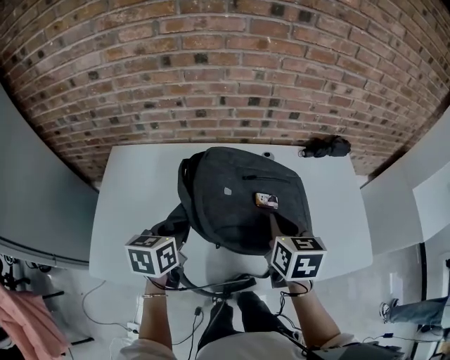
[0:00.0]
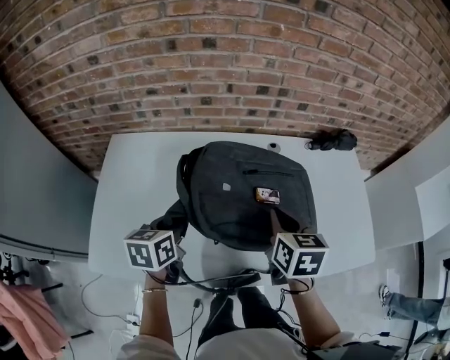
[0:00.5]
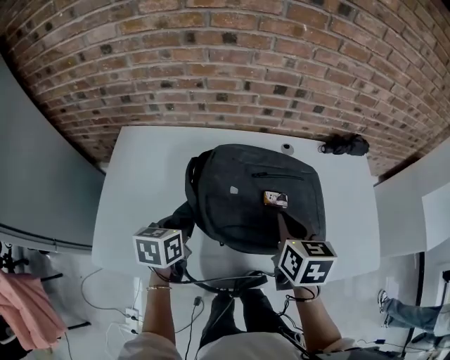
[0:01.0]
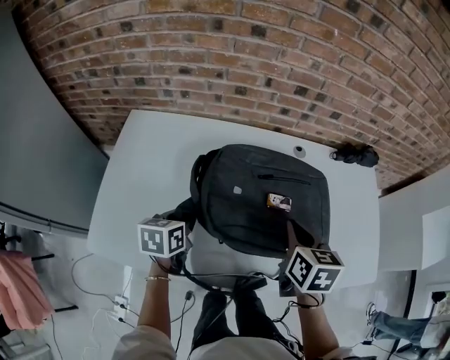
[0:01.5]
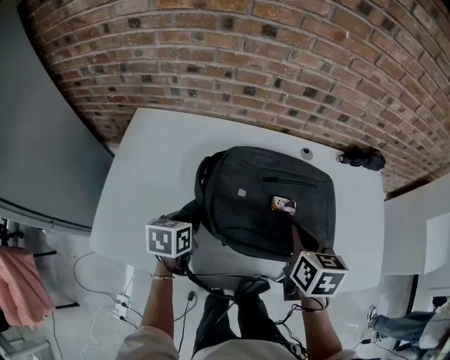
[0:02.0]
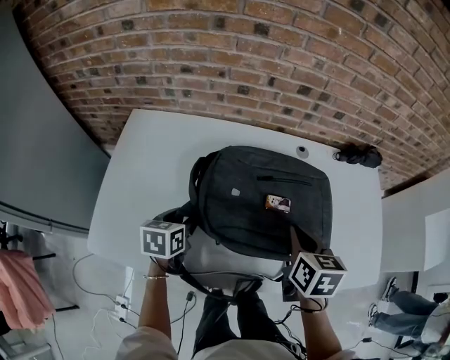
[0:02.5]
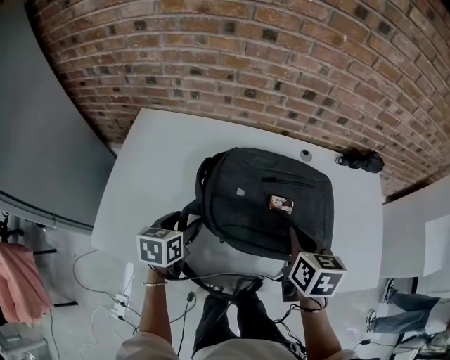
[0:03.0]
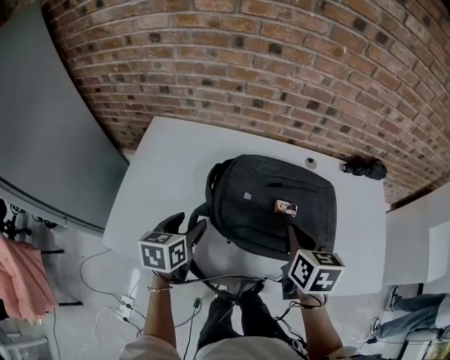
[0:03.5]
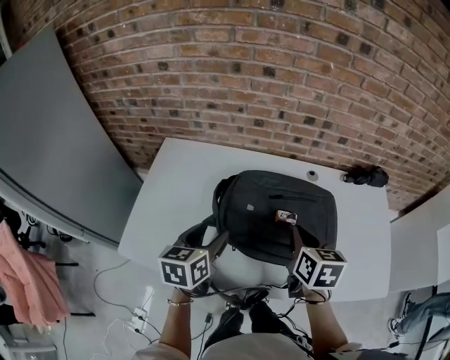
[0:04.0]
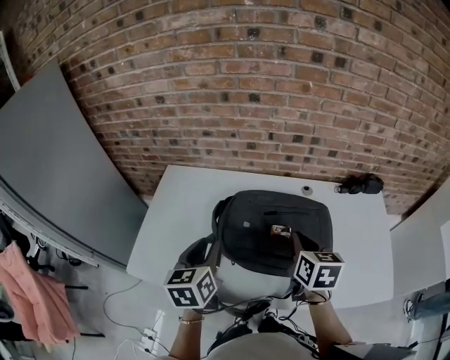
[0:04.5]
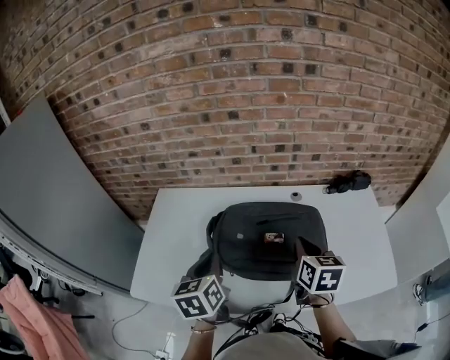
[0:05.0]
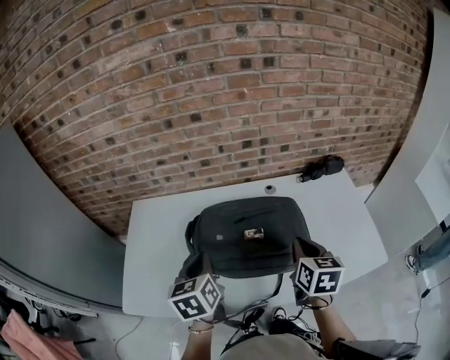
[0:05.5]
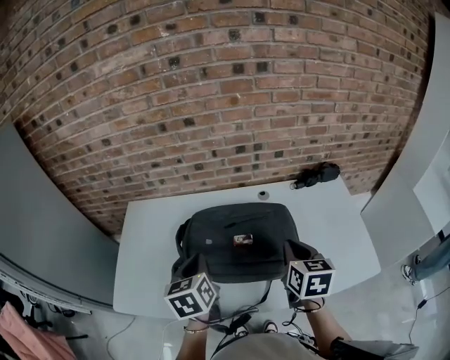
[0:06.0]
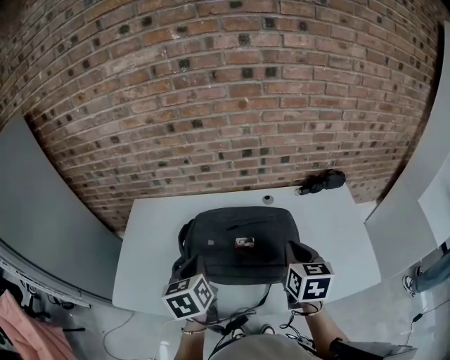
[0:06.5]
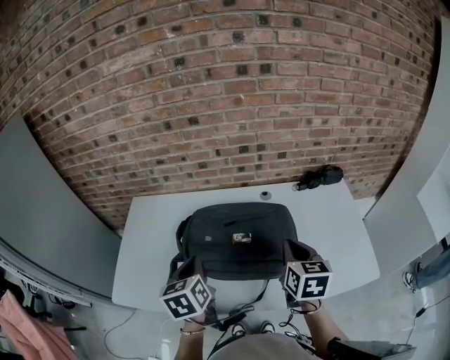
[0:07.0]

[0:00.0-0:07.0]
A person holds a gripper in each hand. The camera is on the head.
0:00.0 to 0:02.0: The right gripper goes some 5 cm downward. Meanwhile the left gripper is displaced downward and to the left by about 15 cm.
0:02.0 to 0:03.5: The left gripper shifts some 5 cm upward, and opens up.
0:03.5 to 0:05.0: The right gripper heads upward and to the right, covering approximately 10 cm, while the left gripper goes some 15 cm upward and to the right, and closes its fingers.
0:05.0 to 0:07.0: The left gripper ends up some 5 cm from where it was, while the right gripper moves to the right, some 5 cm.

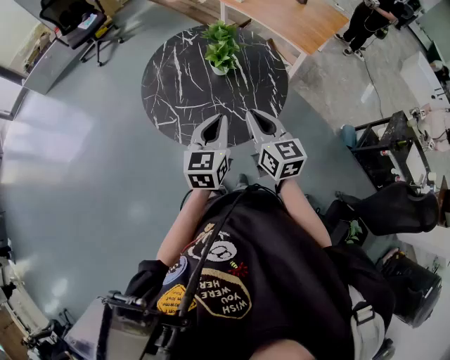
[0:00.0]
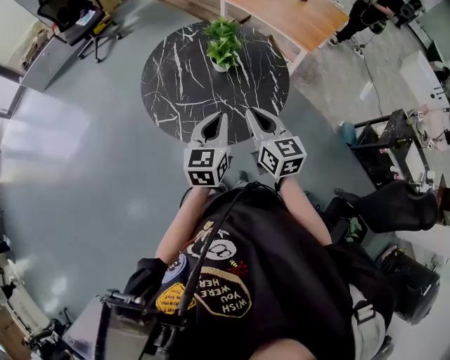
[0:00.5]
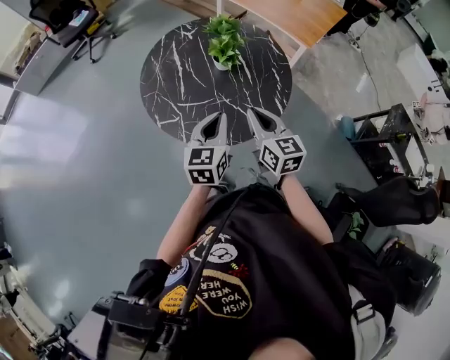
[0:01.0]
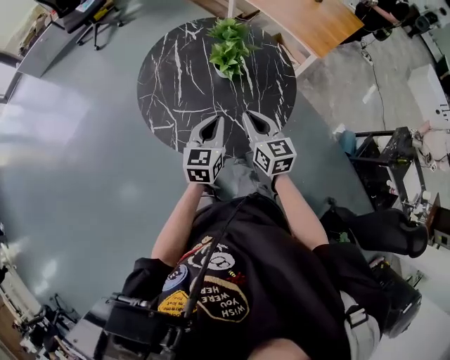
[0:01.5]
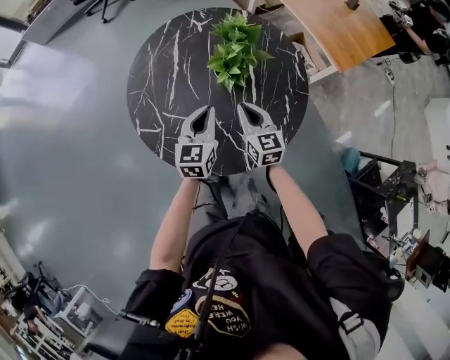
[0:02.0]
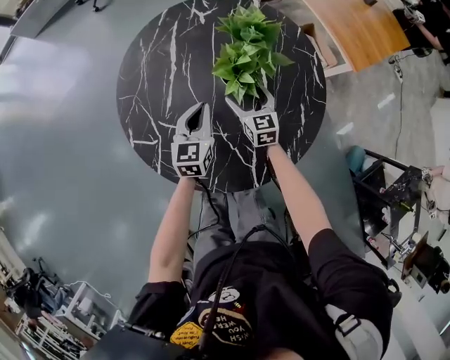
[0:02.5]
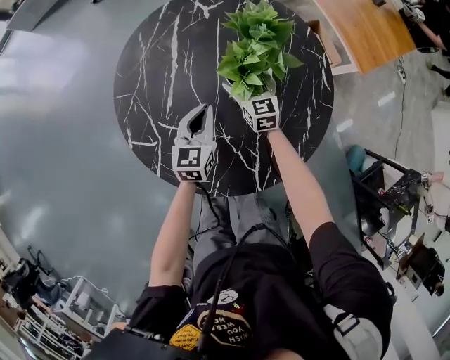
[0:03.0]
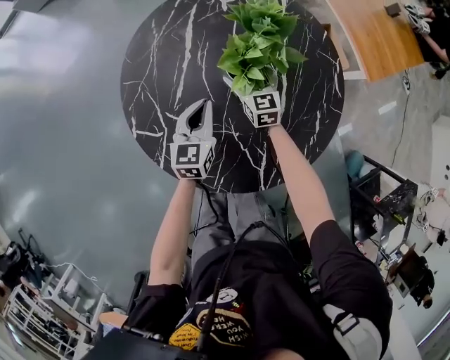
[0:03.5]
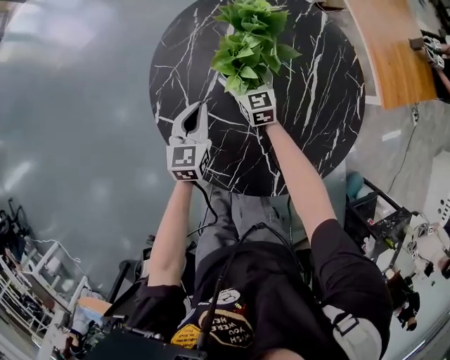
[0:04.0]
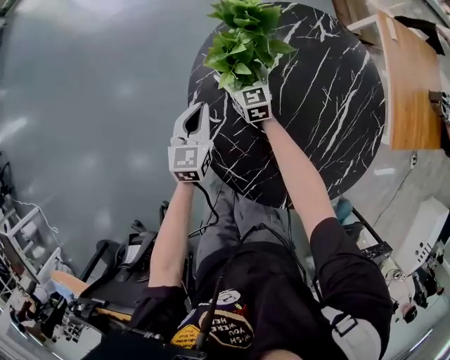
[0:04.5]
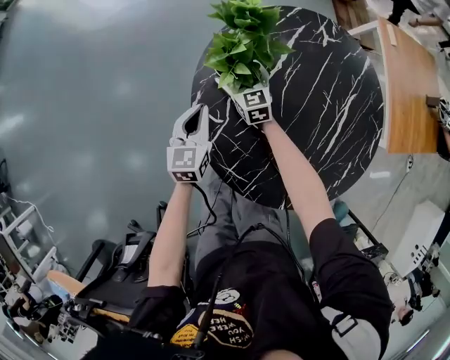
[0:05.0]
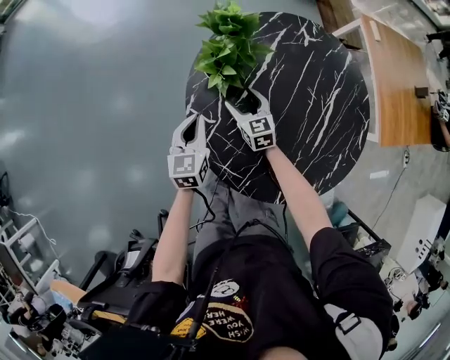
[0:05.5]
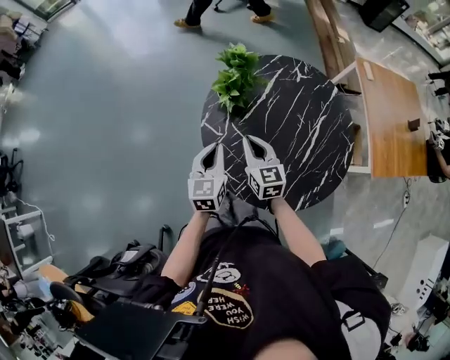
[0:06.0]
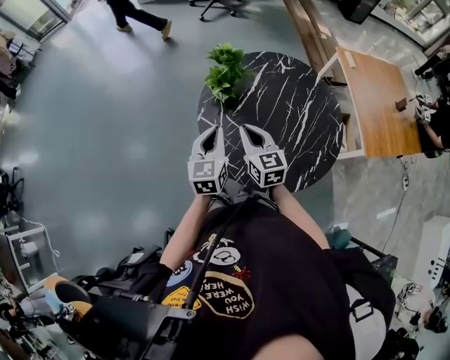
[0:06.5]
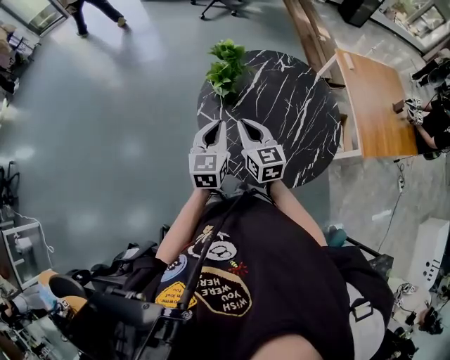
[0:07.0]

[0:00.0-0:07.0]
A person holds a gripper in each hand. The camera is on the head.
0:00.0 to 0:02.0: Both grippers move forward and downward, some 30 cm.
0:02.0 to 0:03.5: The left gripper travels downward, forward and to the left by some 15 cm; the right gripper travels forward and downward by about 25 cm, and opens up.
0:03.5 to 0:05.0: The two grippers go roughly 25 cm to the left. The left gripper turns by some 20 degrees; the right gripper rotates roughly 30 degrees.
0:05.0 to 0:07.0: Both grippers move upward and backward, roughly 35 cm. The right gripper closes.

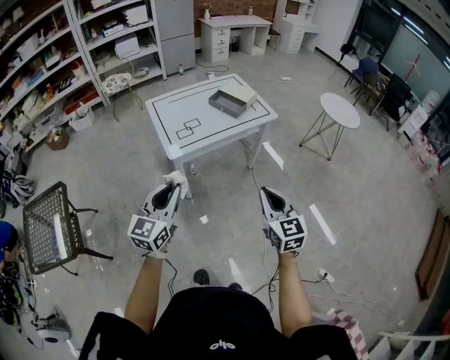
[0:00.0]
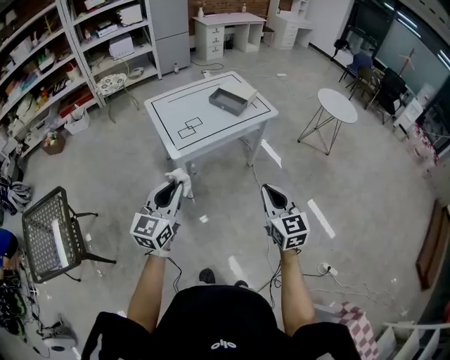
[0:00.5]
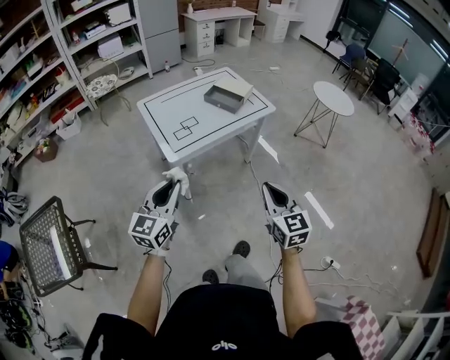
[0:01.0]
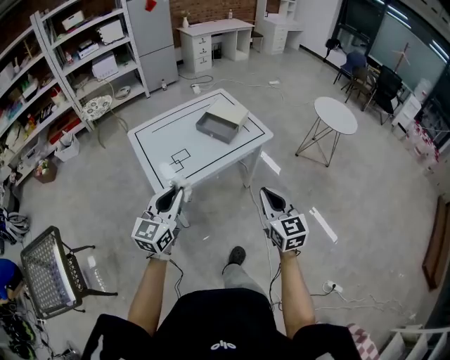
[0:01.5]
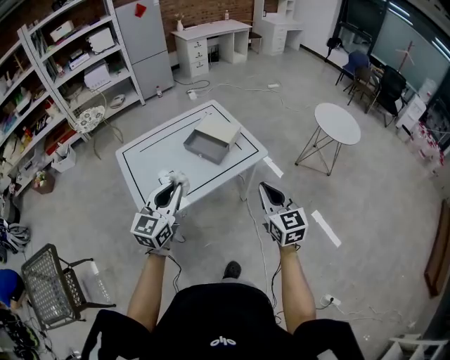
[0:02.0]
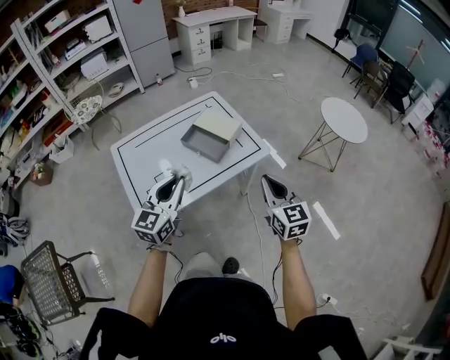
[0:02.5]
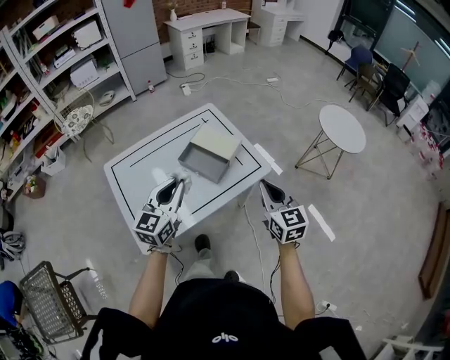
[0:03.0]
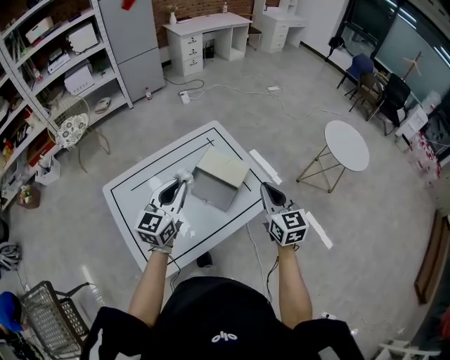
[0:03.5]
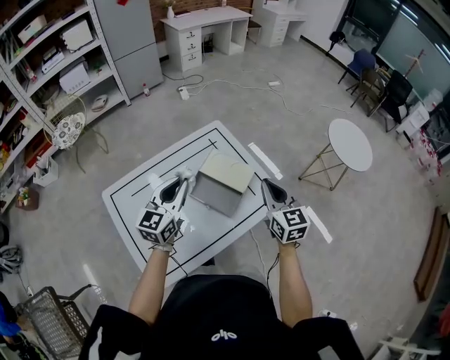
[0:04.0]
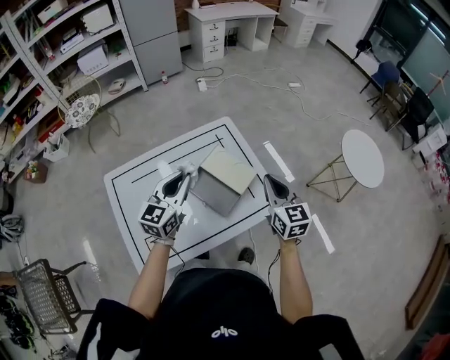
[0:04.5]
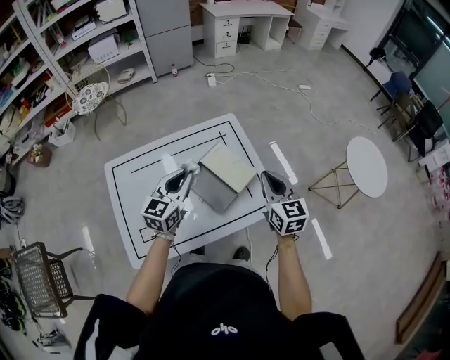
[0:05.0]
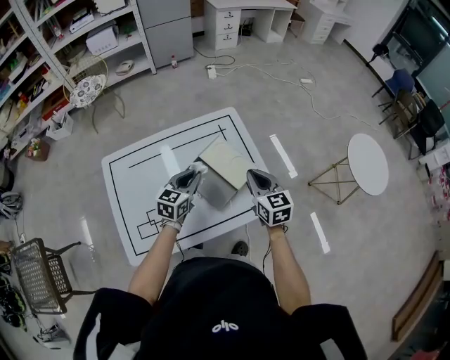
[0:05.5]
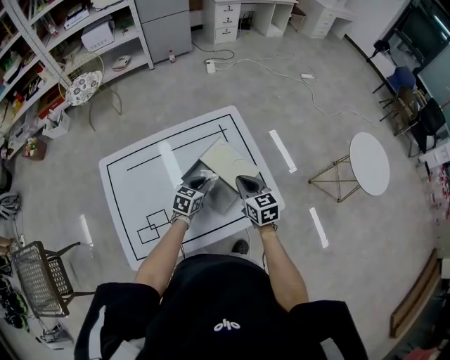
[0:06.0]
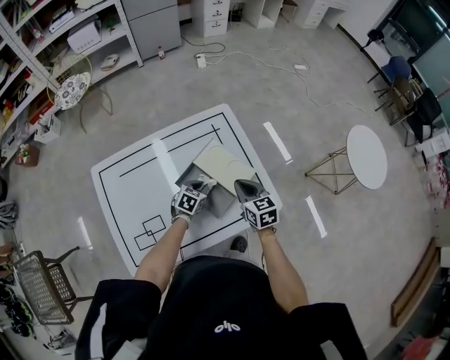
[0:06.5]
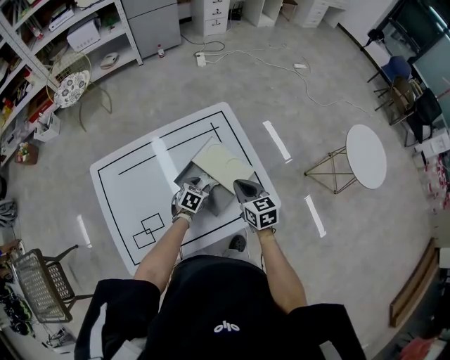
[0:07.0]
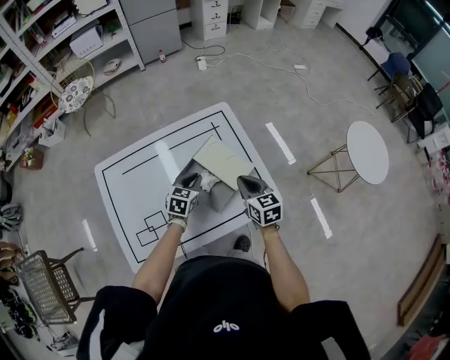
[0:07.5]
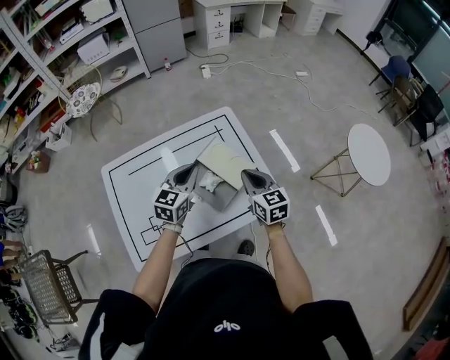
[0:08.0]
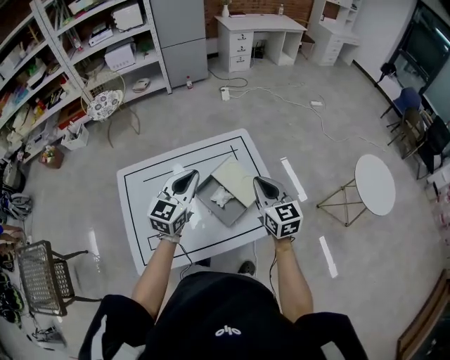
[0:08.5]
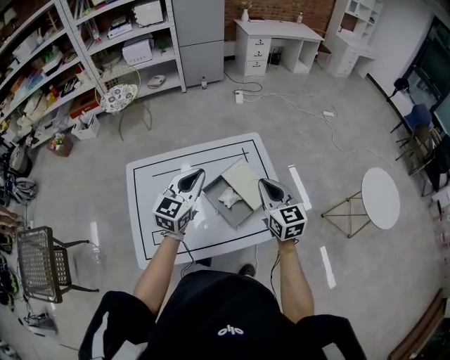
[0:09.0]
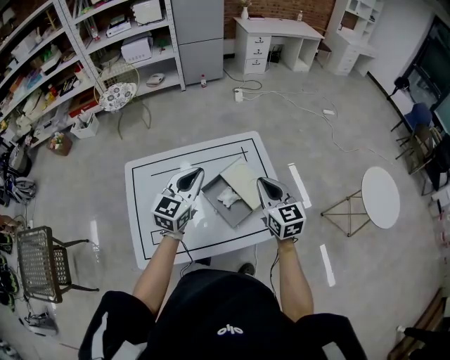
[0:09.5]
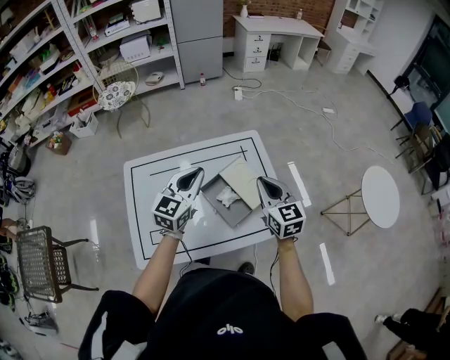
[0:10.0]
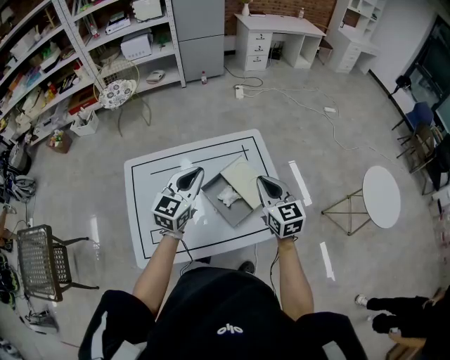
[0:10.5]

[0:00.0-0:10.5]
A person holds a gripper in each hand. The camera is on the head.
0:00.0 to 0:02.0: The two grippers go roughly 40 cm forward.
0:02.0 to 0:04.0: The grippers both shift forward by about 40 cm.
0:04.0 to 0:06.5: The right gripper travels downward and forward by approximately 20 cm, and rotates roughly 30 degrees, while the left gripper goes approximately 35 cm downward, and tilts its fingers about 40 degrees downward.
0:06.5 to 0:08.5: The left gripper goes roughly 35 cm upward, points its fingers roughly 40 degrees further upward, and opens, then closes once more, while the right gripper heads upward, covering approximately 15 cm.
0:08.5 to 0:10.5: There are only small adjustments of the grippers.

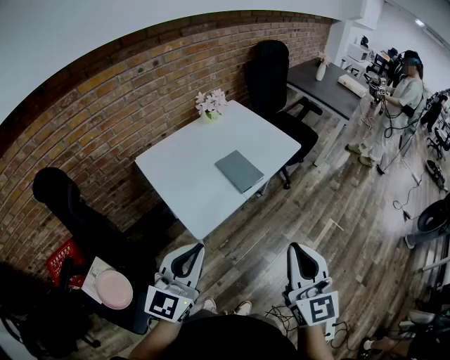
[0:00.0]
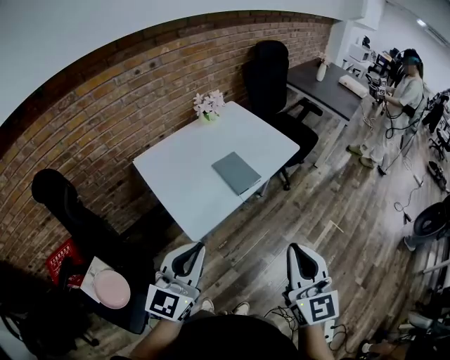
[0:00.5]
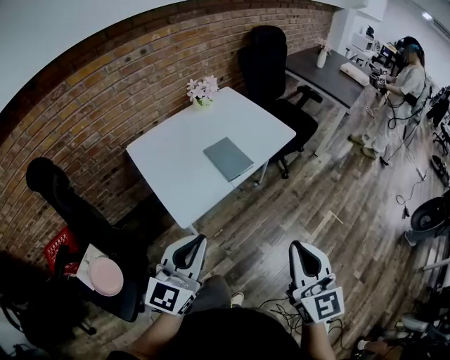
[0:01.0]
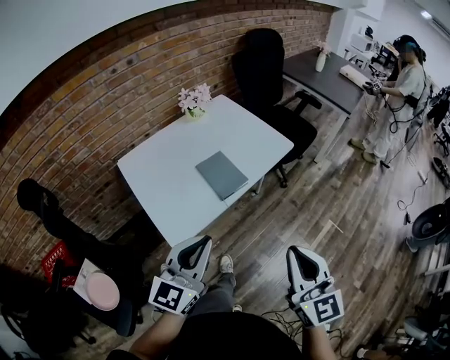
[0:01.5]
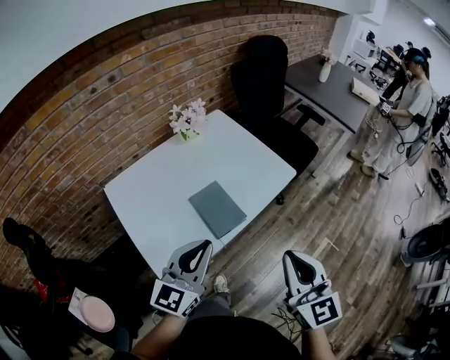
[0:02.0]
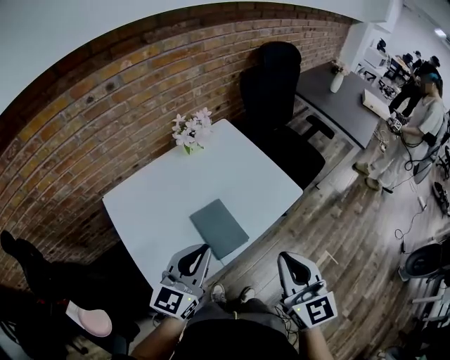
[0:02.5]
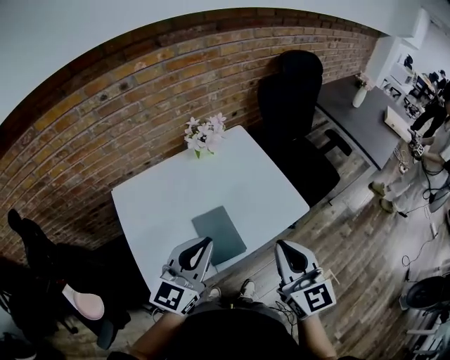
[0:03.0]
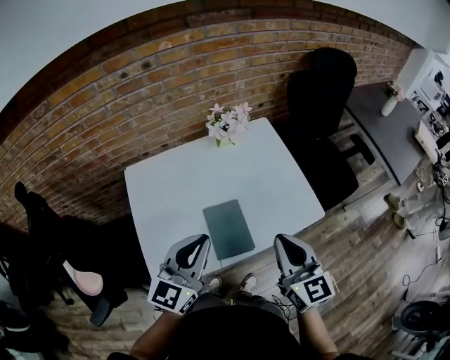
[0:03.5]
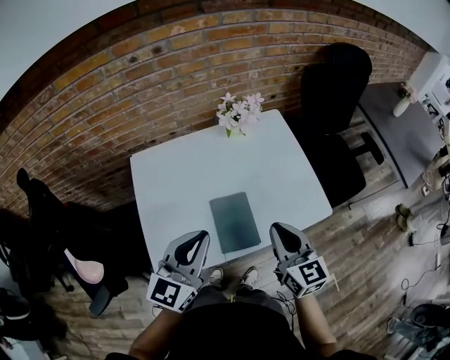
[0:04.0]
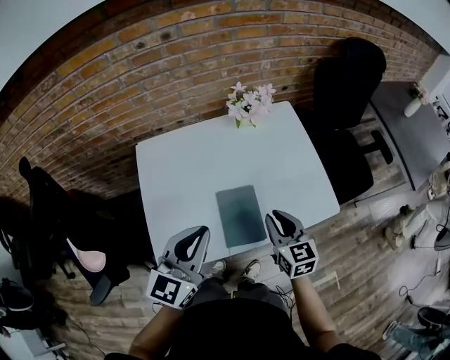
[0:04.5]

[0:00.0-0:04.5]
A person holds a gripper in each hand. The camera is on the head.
0:00.0 to 0:02.0: Both grippers travel together forward, some 25 cm.
0:02.0 to 0:04.5: The left gripper moves about 10 cm, and turns by roughly 30 degrees; the right gripper shifts by some 35 cm, and changes its angle by roughly 30 degrees.
